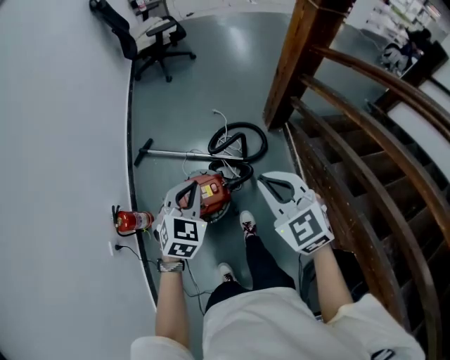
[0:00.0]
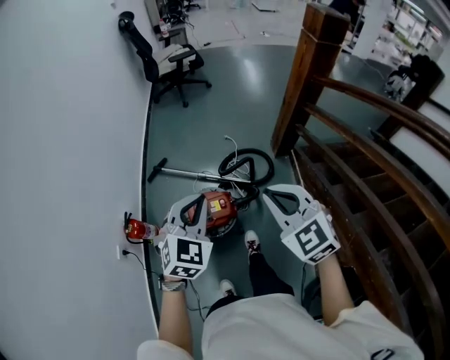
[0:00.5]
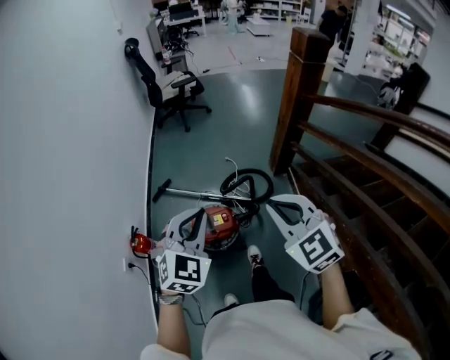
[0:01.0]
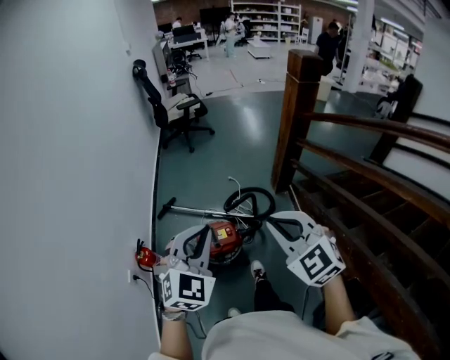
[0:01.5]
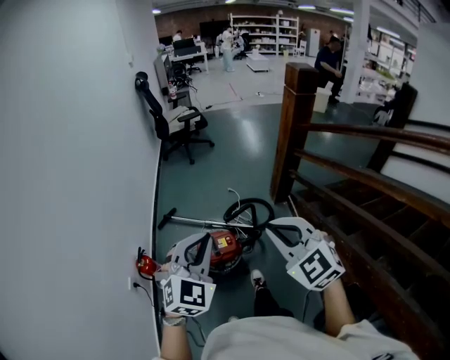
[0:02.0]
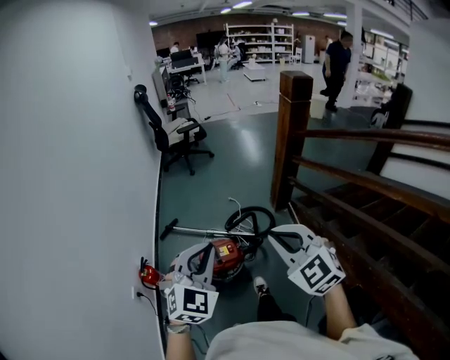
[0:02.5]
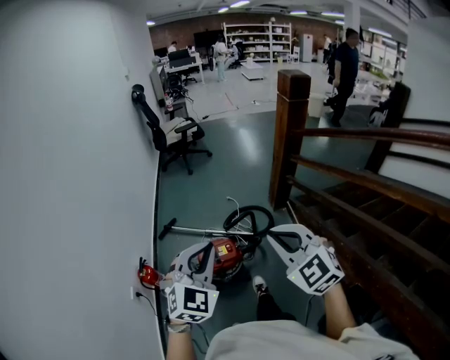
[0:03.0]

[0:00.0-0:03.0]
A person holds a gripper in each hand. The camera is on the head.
0:00.0 to 0:01.5: The right gripper moves backward and upward, approximately 25 cm. Meanwhile the left gripper goes approximately 30 cm upward and backward, and rotates some 20 degrees.
0:01.5 to 0:03.0: The grippers stay close to where they were, moving slightly.

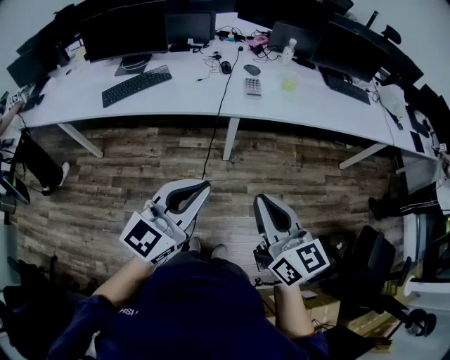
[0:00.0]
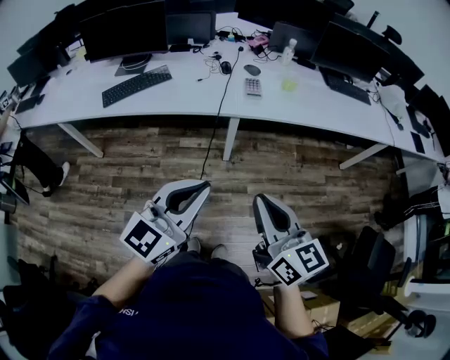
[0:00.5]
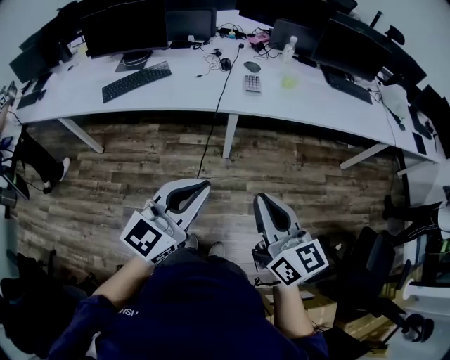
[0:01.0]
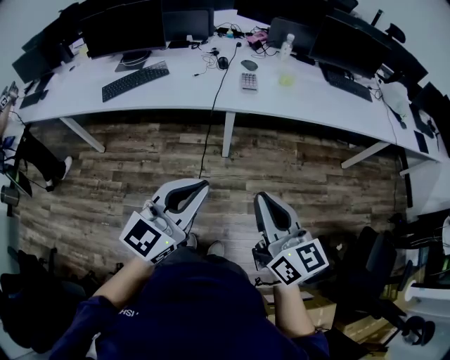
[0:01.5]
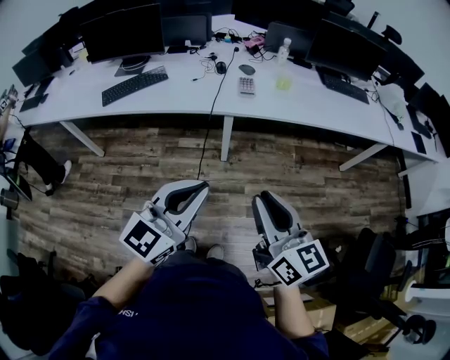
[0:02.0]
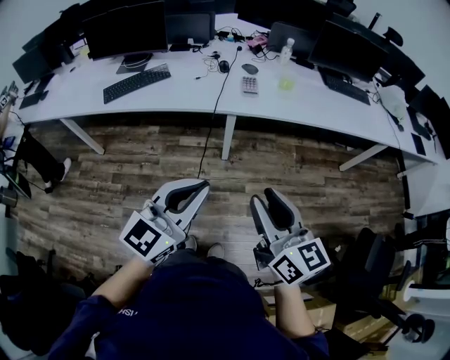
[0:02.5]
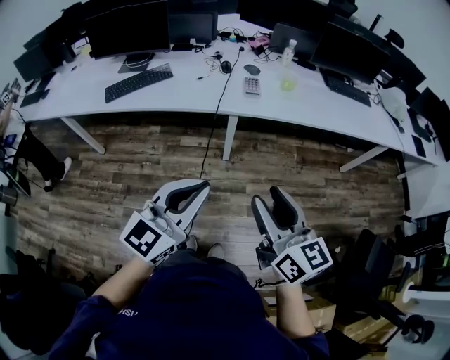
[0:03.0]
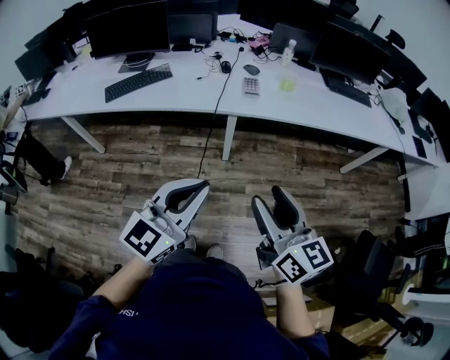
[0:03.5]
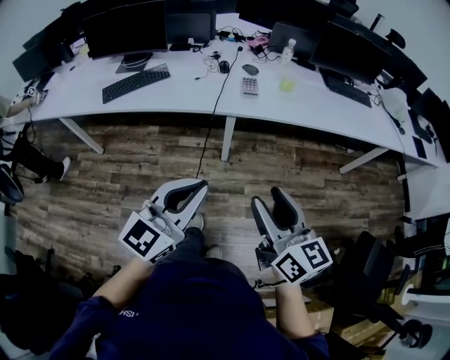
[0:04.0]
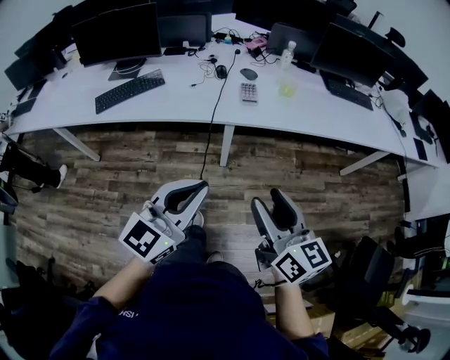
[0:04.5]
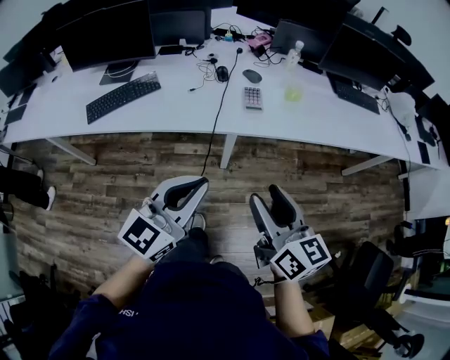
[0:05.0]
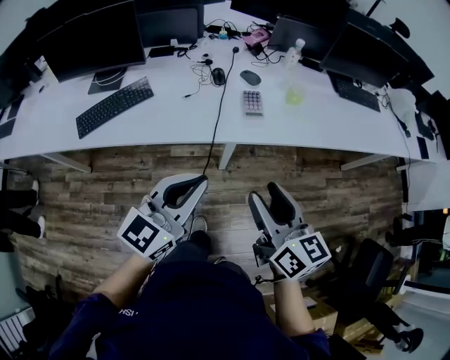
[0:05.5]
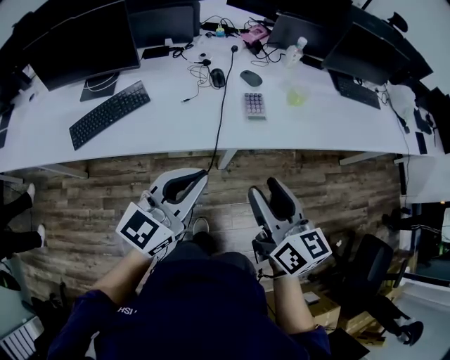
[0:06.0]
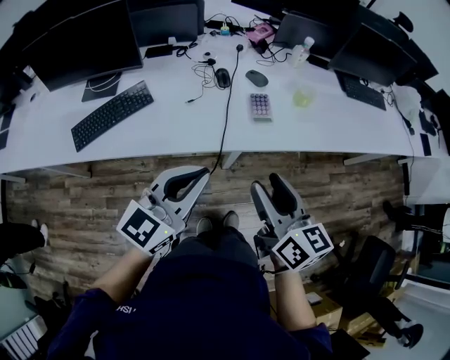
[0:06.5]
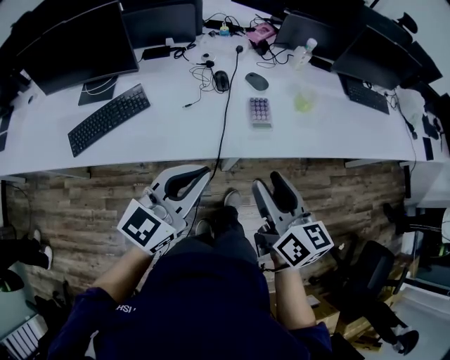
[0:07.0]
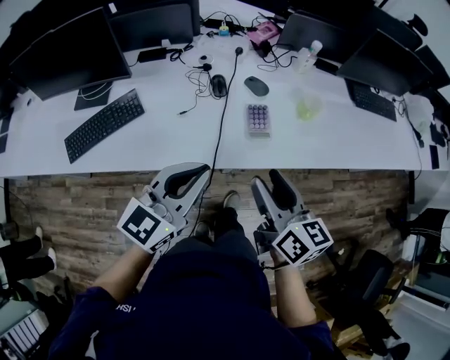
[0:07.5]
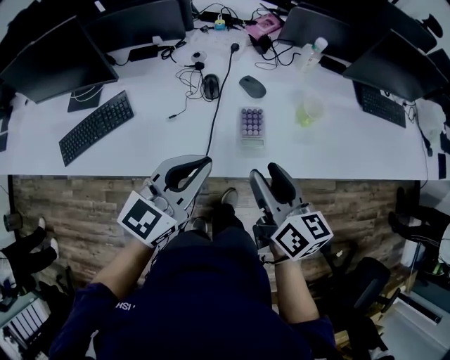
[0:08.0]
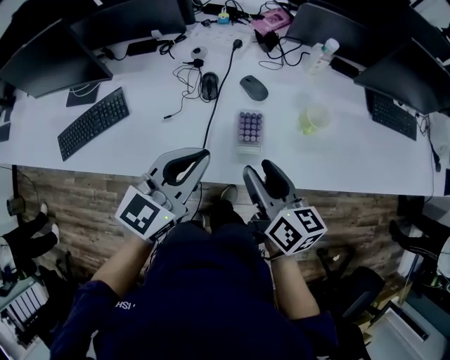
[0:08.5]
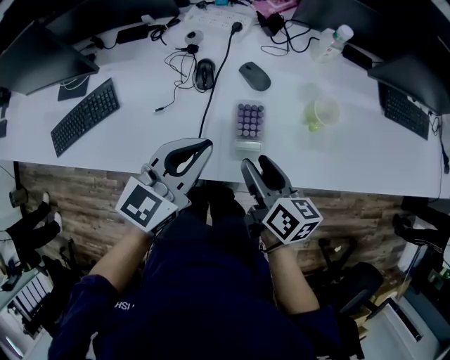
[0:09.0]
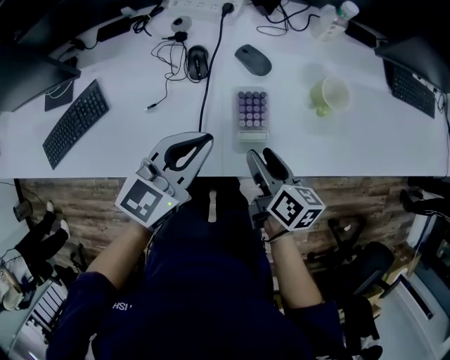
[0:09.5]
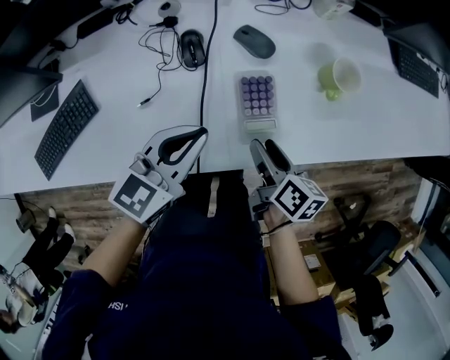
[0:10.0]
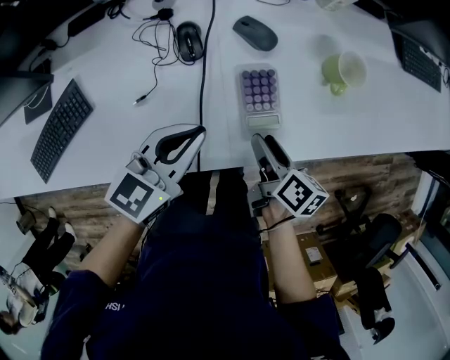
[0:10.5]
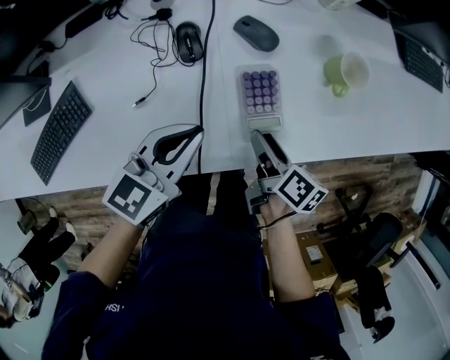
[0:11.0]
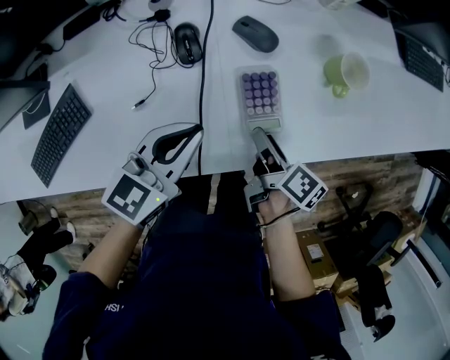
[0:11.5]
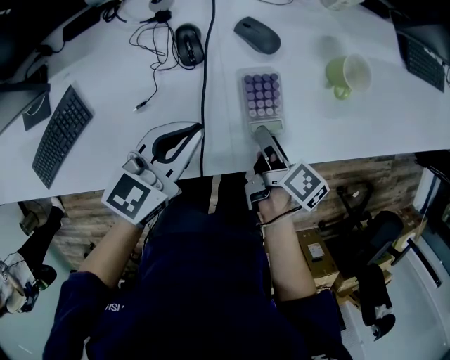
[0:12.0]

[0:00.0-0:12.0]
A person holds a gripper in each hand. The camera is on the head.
0:00.0 to 0:02.0: Both grippers move to the right, some 5 cm.
0:02.0 to 0:04.0: The right gripper opens.
0:04.0 to 0:06.0: The grippers both shift forward and to the left by some 30 cm.
0:06.0 to 0:08.0: The grippers both shift forward by some 20 cm.
0:08.0 to 0:10.0: The right gripper moves downward, roughly 20 cm, and turns by approximately 30 degrees; the left gripper travels downward and forward by approximately 20 cm.
0:10.0 to 0:12.0: The right gripper rotates approximately 20 degrees.

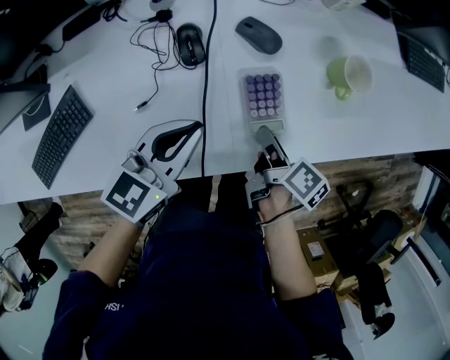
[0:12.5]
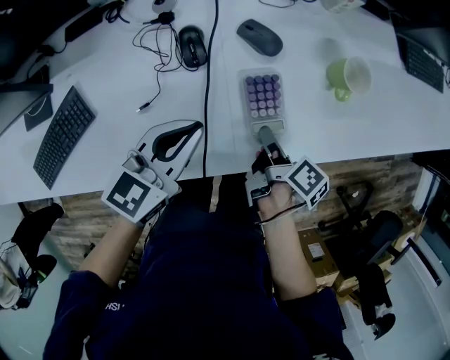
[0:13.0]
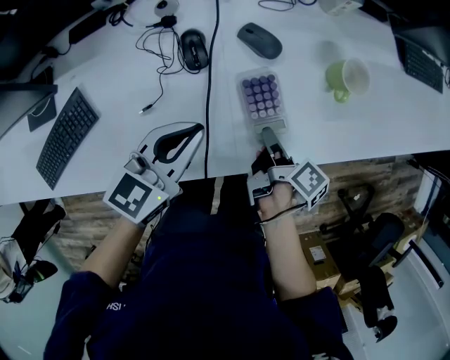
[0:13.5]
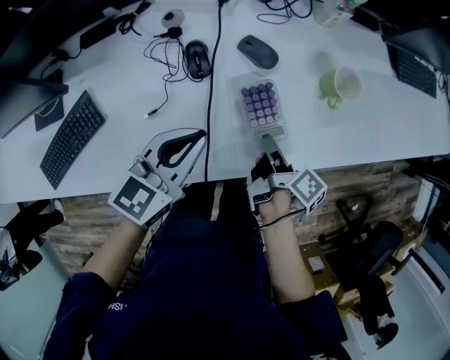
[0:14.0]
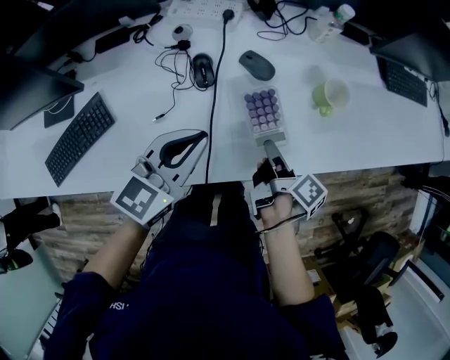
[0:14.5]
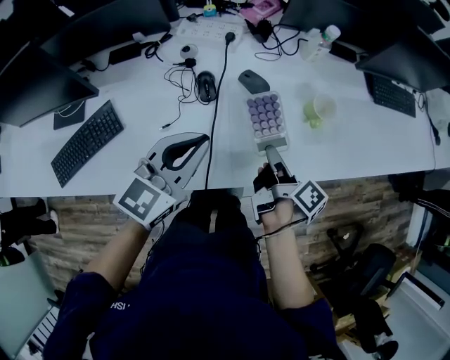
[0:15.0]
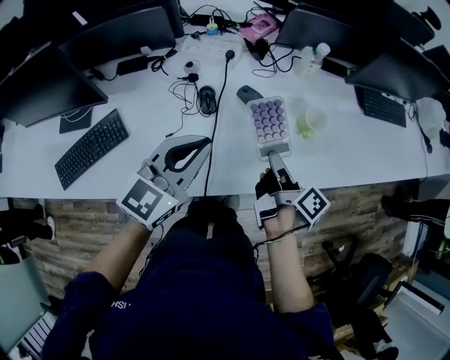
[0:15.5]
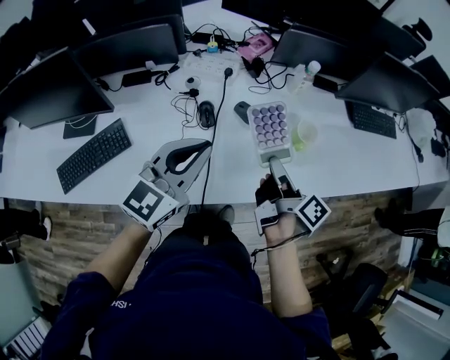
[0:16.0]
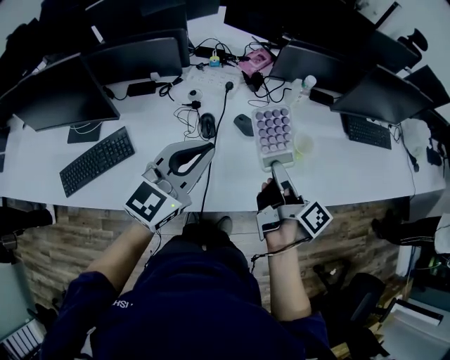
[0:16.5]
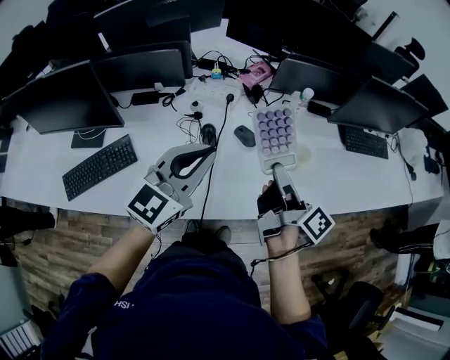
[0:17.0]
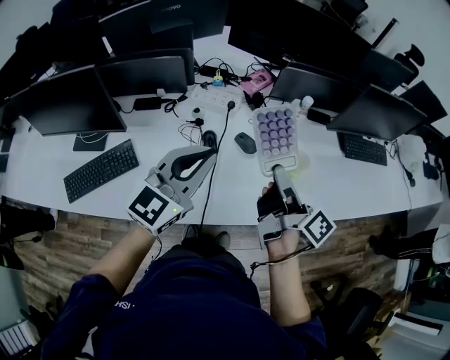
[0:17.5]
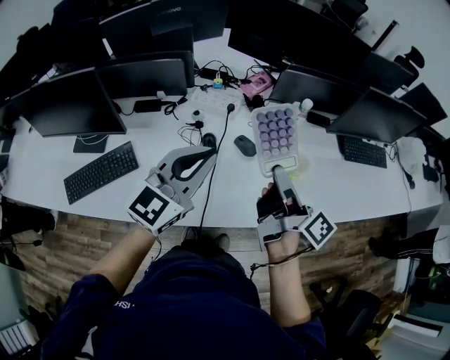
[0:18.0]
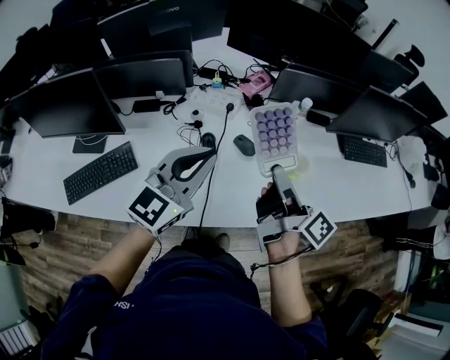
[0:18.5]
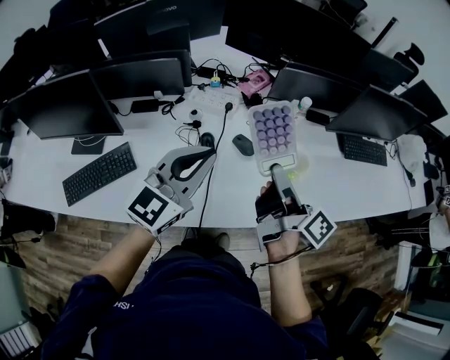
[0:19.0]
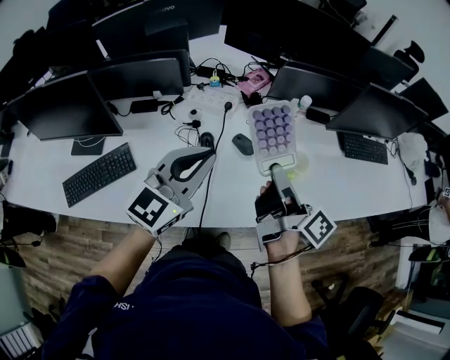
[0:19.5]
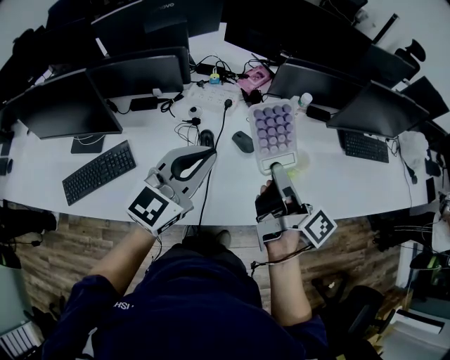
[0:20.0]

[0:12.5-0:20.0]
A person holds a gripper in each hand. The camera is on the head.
0:12.5 to 0:14.5: The right gripper shifts by some 5 cm; the left gripper heads upward, covering about 5 cm.
0:14.5 to 0:16.5: Both grippers move upward, roughly 20 cm. The right gripper swivels roughly 20 degrees.
0:16.5 to 0:18.0: The right gripper goes some 10 cm upward.
0:18.0 to 0:20.0: Both grippers stay about where they are.

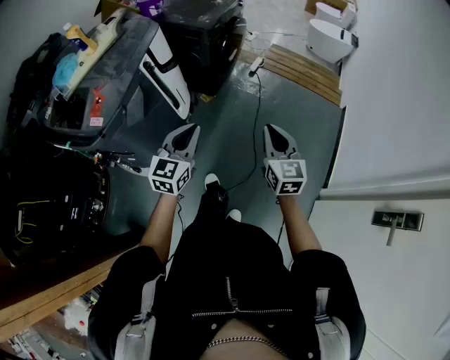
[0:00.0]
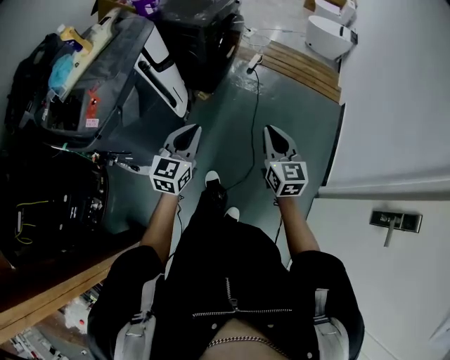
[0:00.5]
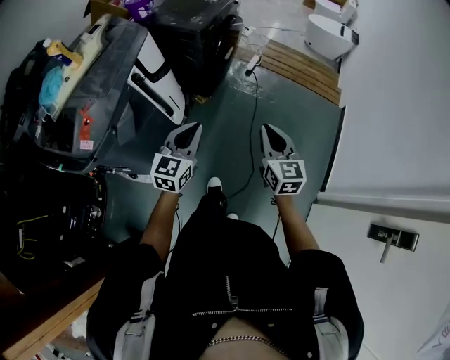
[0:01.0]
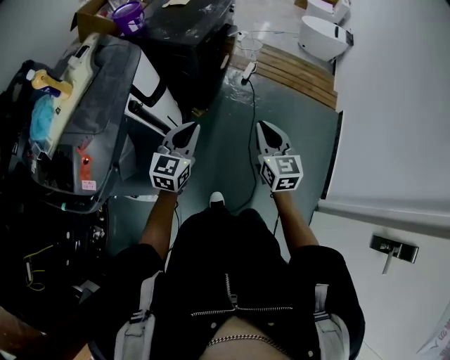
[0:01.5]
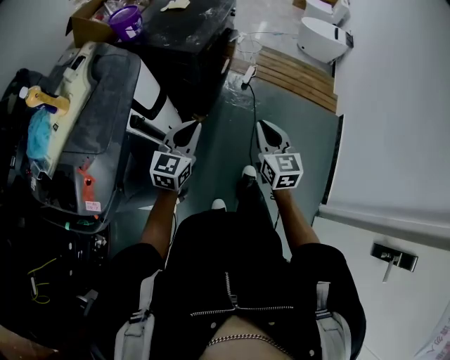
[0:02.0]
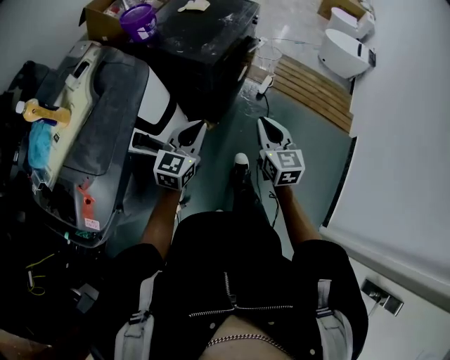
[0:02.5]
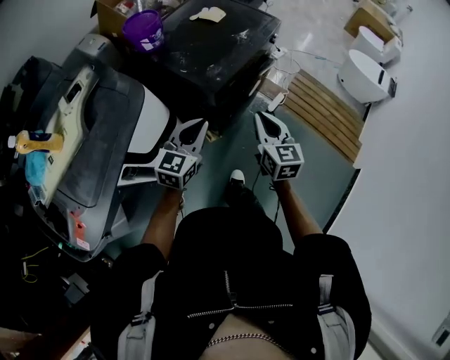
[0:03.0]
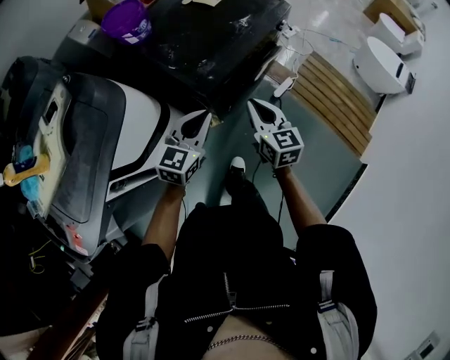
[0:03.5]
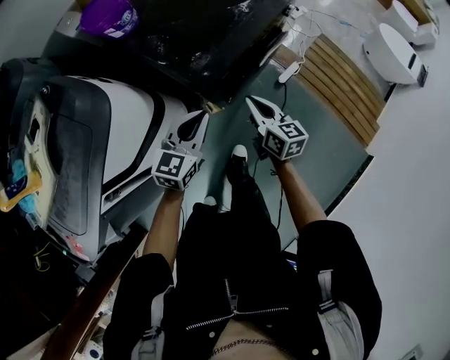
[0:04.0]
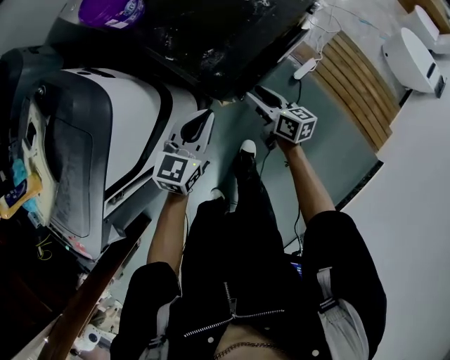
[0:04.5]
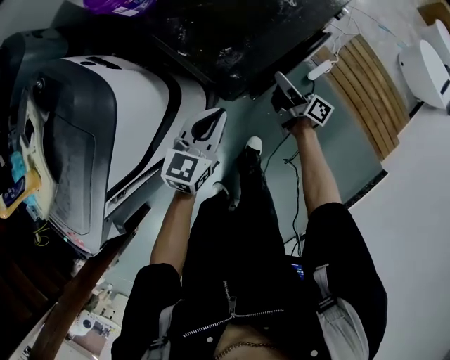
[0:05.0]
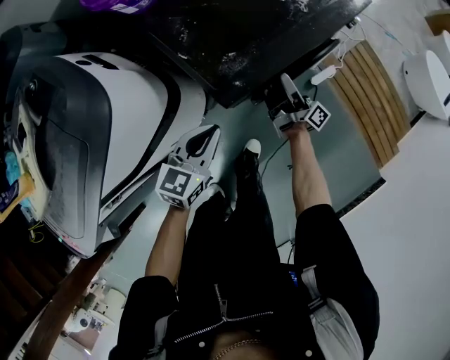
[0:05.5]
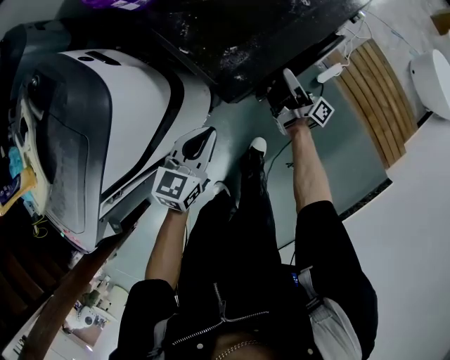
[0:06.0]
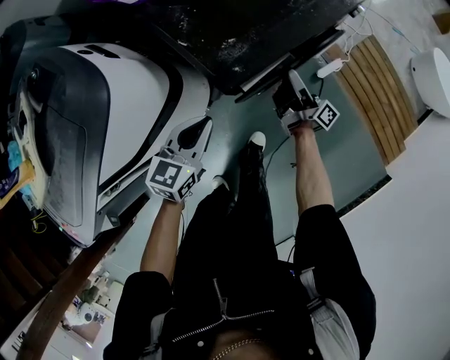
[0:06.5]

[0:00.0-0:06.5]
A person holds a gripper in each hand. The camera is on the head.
0:00.0 to 0:02.0: Both grippers move forward, some 25 cm.
0:02.0 to 0:04.5: The left gripper changes place by approximately 40 cm, and changes its angle by some 20 degrees. The right gripper shifts by about 50 cm, changes its angle by some 60 degrees, and opens.
0:04.5 to 0:06.5: The right gripper travels forward by some 5 cm, and tips its fingers upward by about 30 degrees. Meanwhile the left gripper shifts some 5 cm downward.
